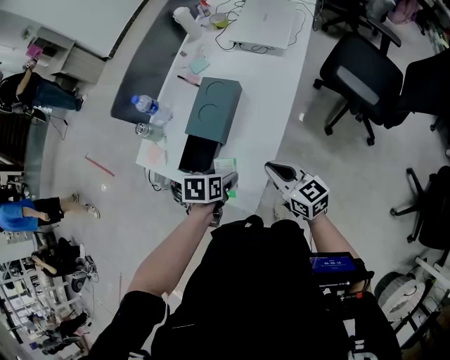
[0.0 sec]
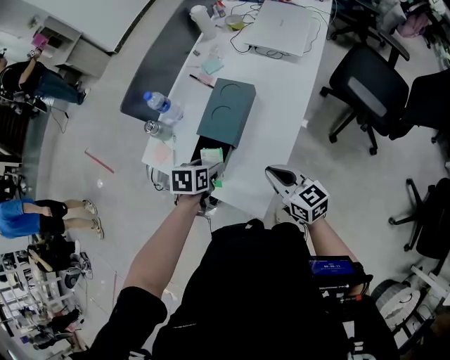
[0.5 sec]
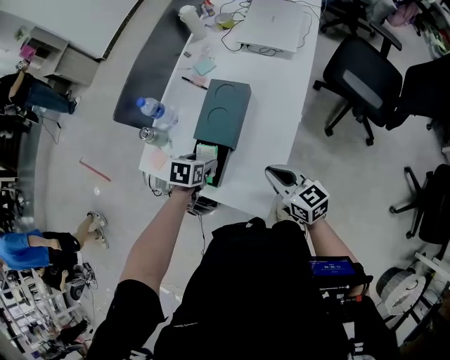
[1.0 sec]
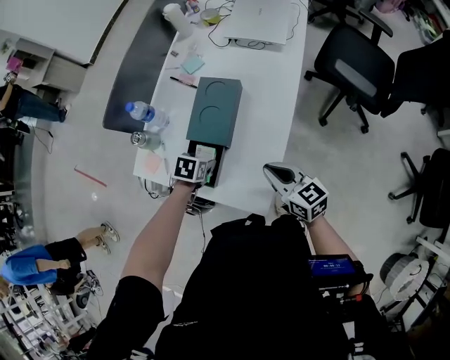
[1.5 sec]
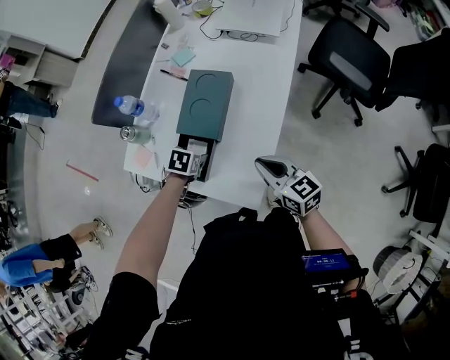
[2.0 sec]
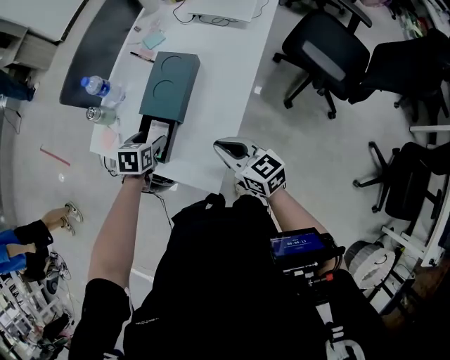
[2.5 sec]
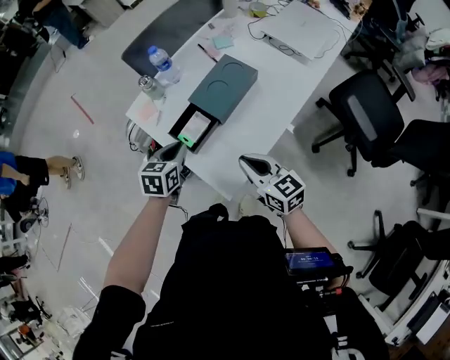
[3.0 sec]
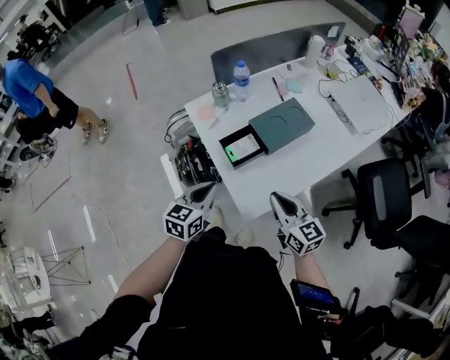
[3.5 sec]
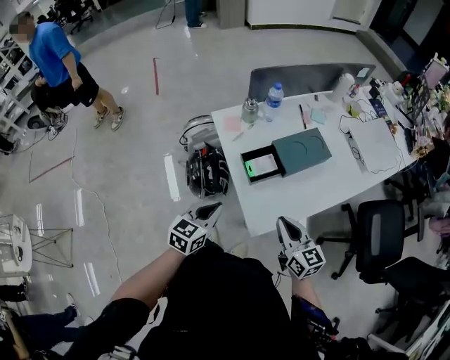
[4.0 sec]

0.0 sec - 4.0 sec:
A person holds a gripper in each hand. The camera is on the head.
0.0 sec - 2.0 sec: The left gripper ends up approximately 15 cm from where it was, and rotates about 20 degrees.
2.0 sec - 4.0 sec: The right gripper shifts by roughly 10 cm, and swivels approximately 30 degrees, while the left gripper shifts by some 30 cm, angles its fingers upward, by about 50 degrees, and closes.

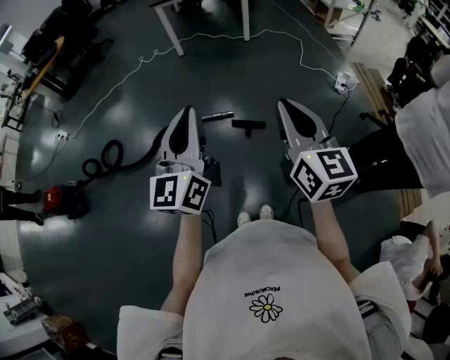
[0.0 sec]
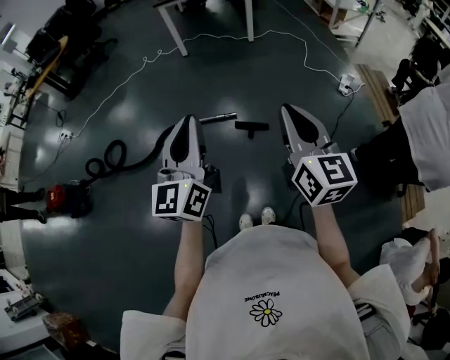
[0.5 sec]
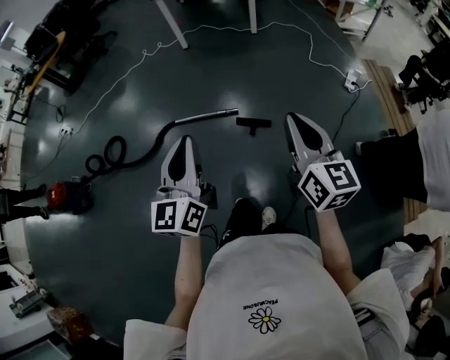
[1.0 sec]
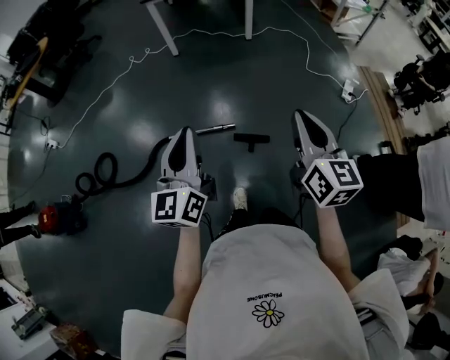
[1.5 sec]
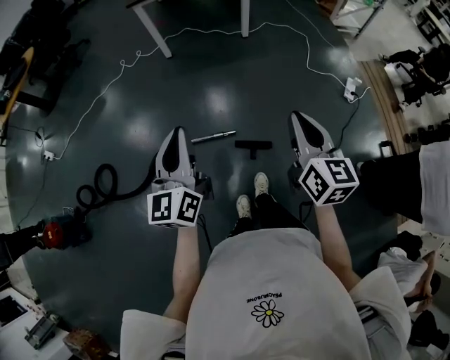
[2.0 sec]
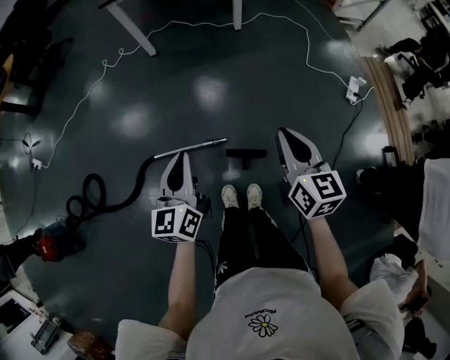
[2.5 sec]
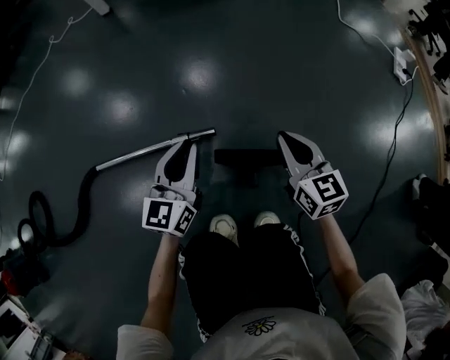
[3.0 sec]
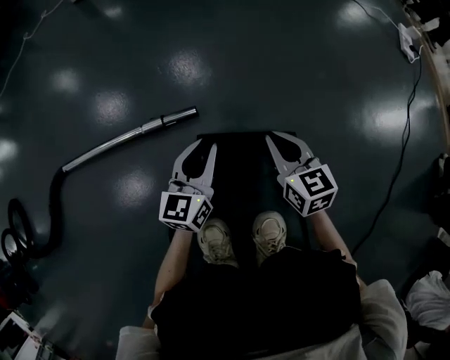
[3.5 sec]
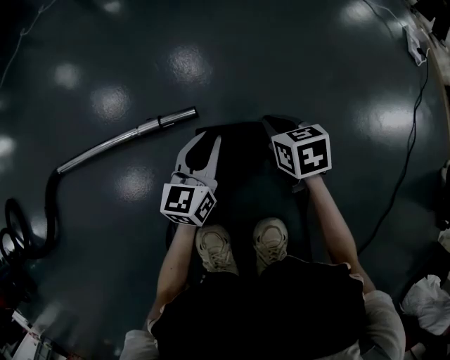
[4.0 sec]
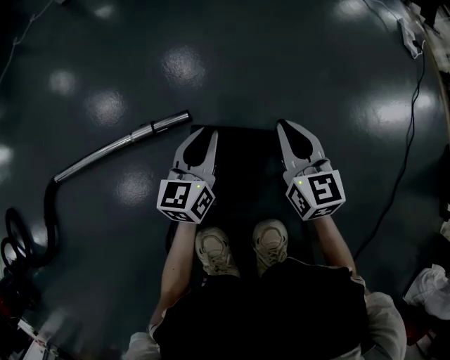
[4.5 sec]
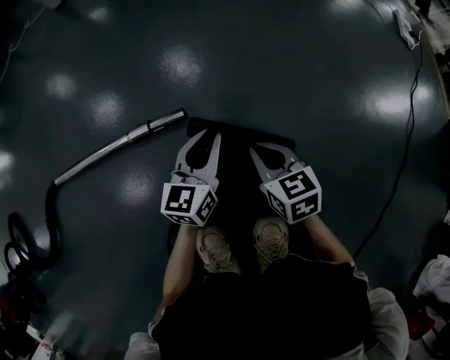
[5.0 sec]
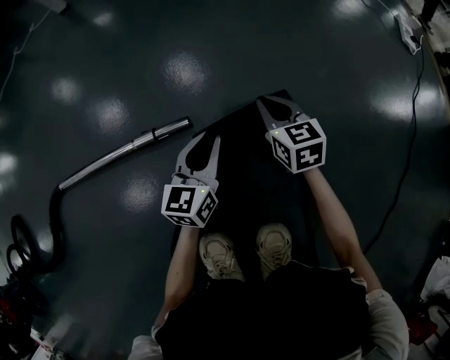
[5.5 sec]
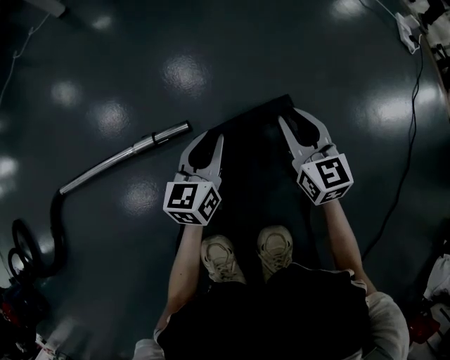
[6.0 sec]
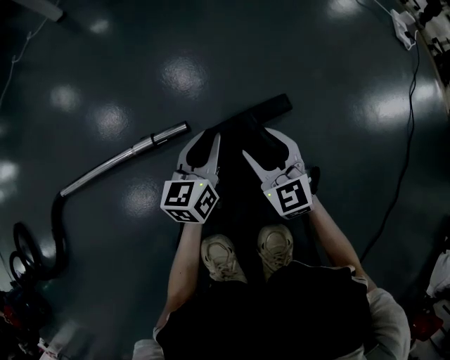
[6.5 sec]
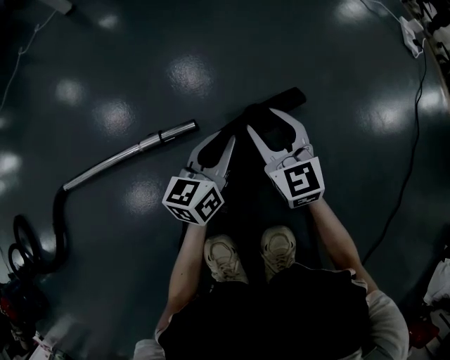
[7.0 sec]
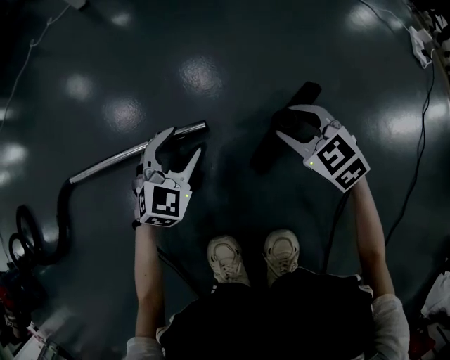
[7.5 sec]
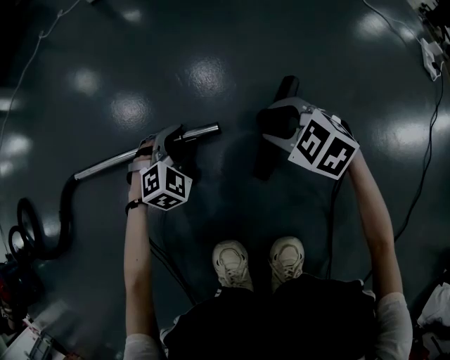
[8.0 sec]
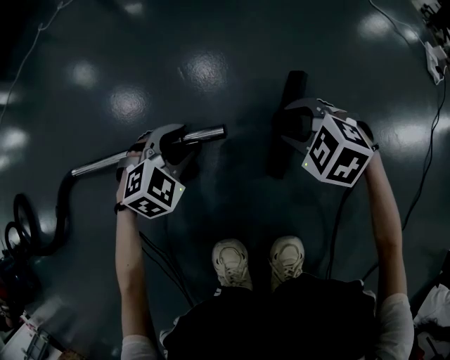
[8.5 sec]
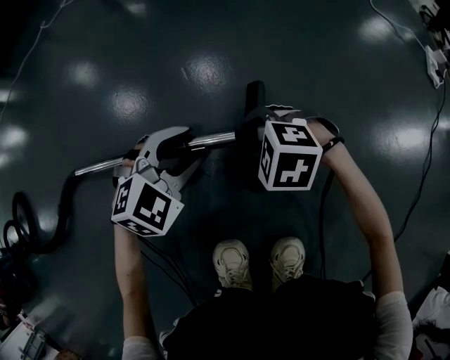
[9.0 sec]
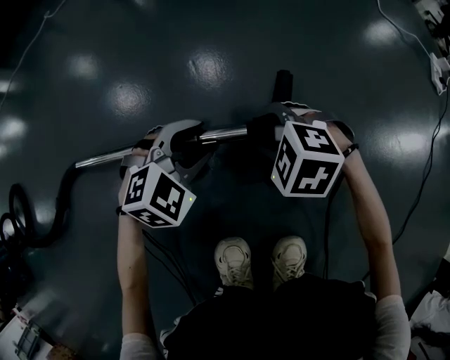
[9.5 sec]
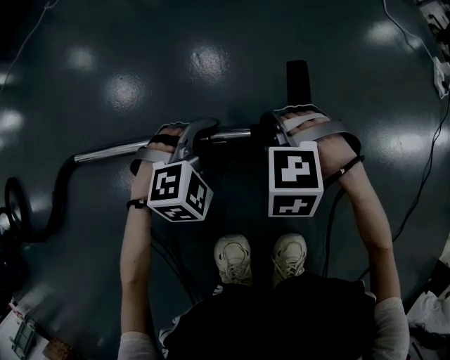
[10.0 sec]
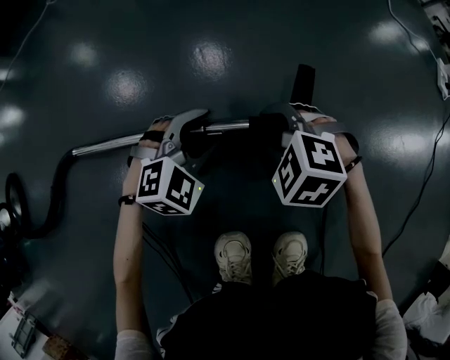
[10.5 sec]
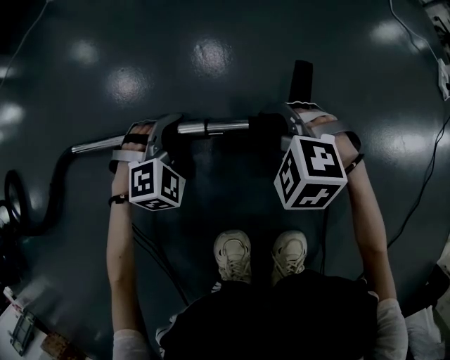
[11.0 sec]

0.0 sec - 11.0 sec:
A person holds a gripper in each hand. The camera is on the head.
0.0 sec - 2.0 sec: Both grippers move forward, approximately 35 cm.
2.0 sec - 3.5 sec: The grippers both shift downward by about 90 cm. The right gripper turns by approximately 20 degrees, while the left gripper turns by some 30 degrees.
3.5 sec - 5.5 sec: The left gripper shifts by roughly 5 cm. The right gripper swings forward and backward, approximately 15 cm each way, with 2 reversals.
5.5 sec - 7.5 sec: The left gripper is displaced to the left by roughly 10 cm, rolls clockwise, seen from behind, by some 50 degrees, and opens, while the right gripper changes place by approximately 5 cm, changes its angle by some 30 degrees, and opens.
7.5 sec - 9.0 sec: The right gripper is displaced to the left by roughly 15 cm, and swivels roughly 40 degrees.
9.0 sec - 11.0 sec: The left gripper travels downward and to the left by roughly 10 cm, and swivels approximately 20 degrees.

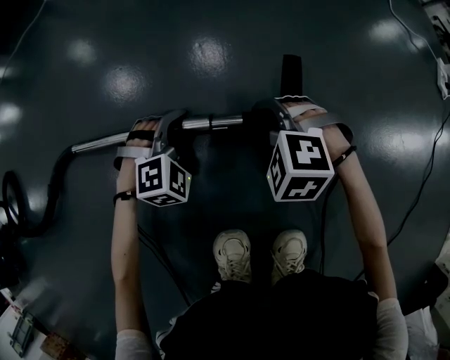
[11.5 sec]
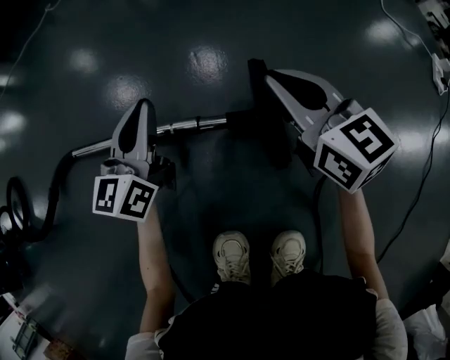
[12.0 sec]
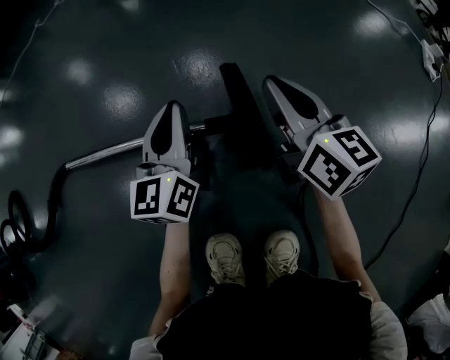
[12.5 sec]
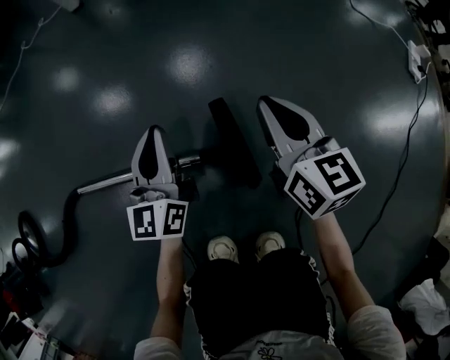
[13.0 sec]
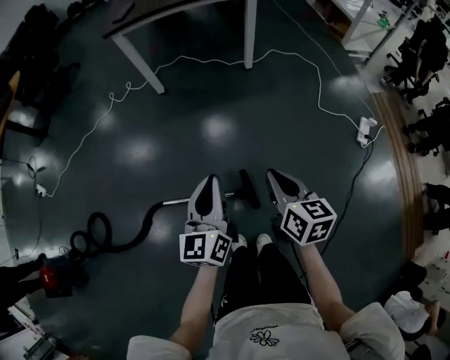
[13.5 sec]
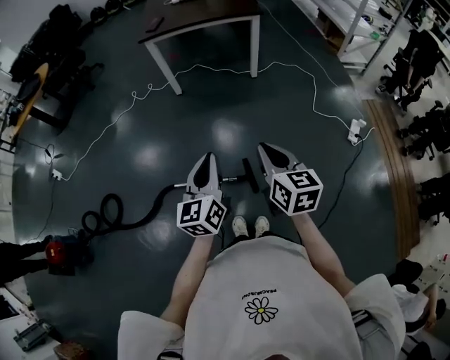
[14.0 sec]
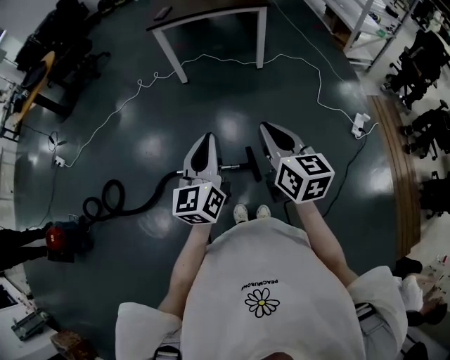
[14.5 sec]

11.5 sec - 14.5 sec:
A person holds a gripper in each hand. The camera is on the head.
11.5 sec - 13.0 sec: The right gripper travels upward, to the right and forward by some 25 cm, rotates around the line of its fingers by approximately 70 degrees, clockwise from behind, and closes, while the left gripper travels upward by about 20 cm, rotates around the line of its fingers by about 80 degrees, counterclockwise from behind, and closes.
13.0 sec - 14.5 sec: Both grippers move upward, some 80 cm.

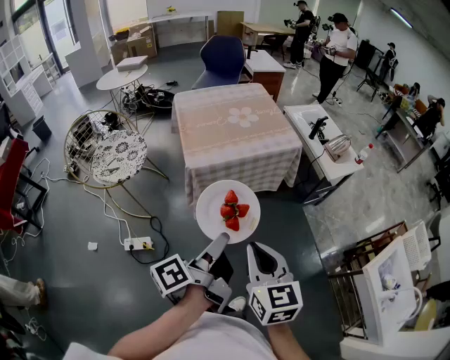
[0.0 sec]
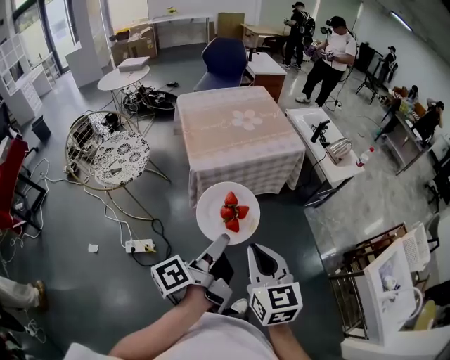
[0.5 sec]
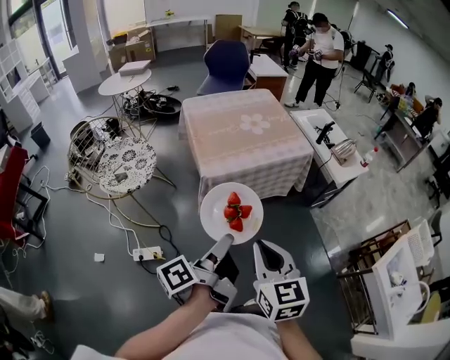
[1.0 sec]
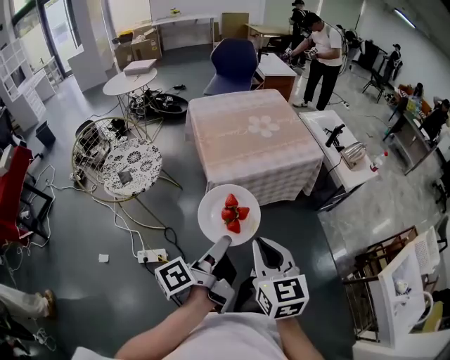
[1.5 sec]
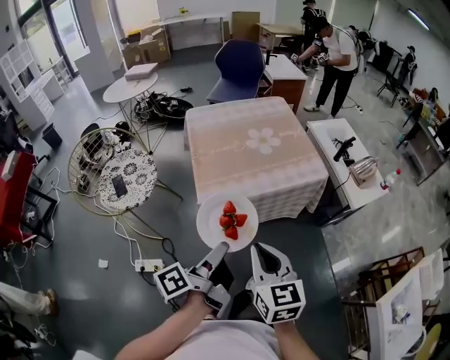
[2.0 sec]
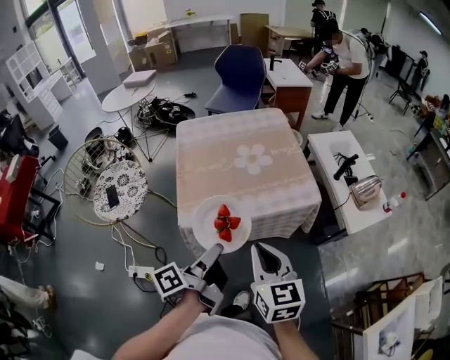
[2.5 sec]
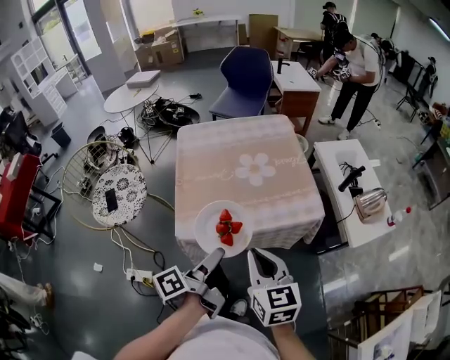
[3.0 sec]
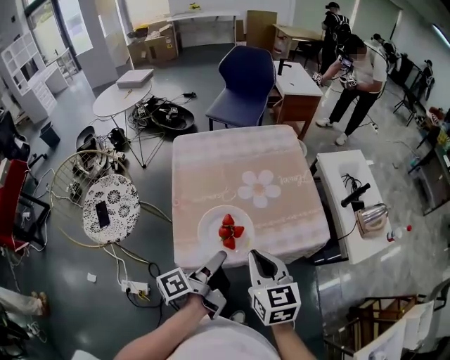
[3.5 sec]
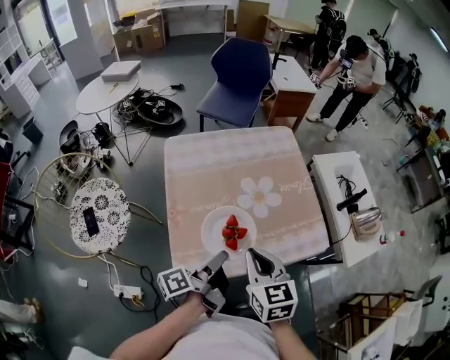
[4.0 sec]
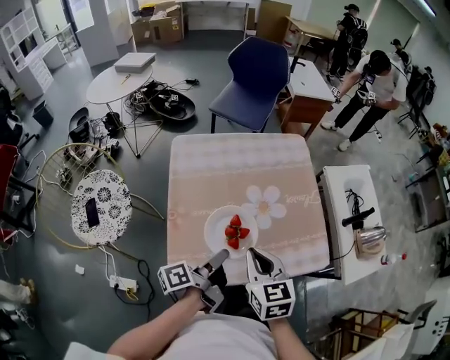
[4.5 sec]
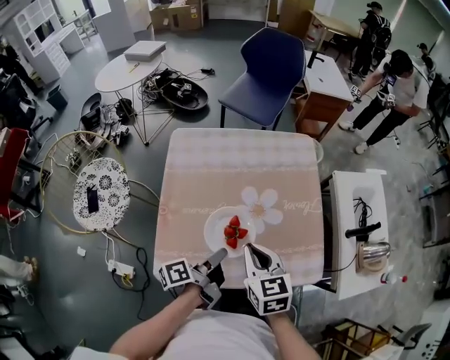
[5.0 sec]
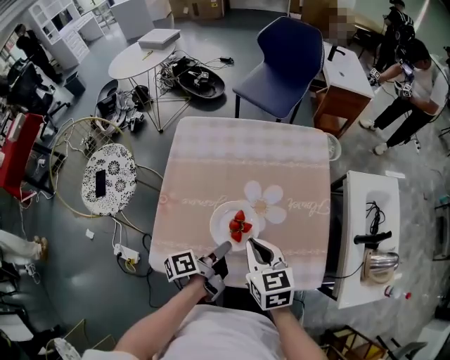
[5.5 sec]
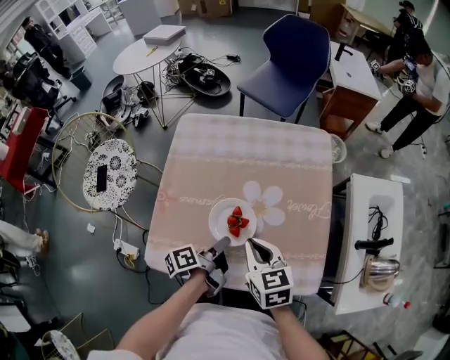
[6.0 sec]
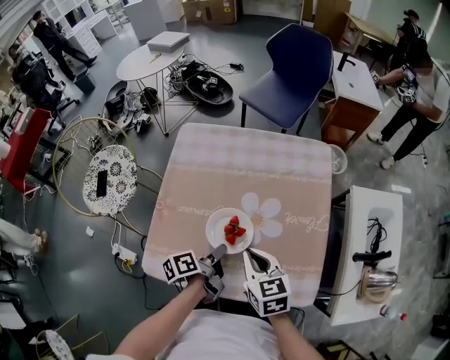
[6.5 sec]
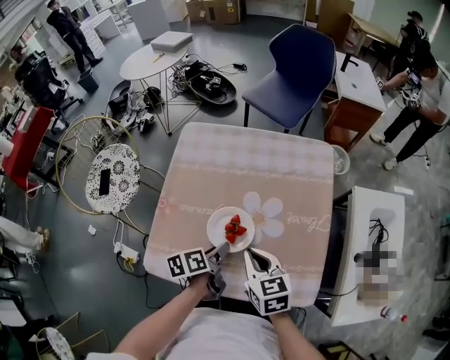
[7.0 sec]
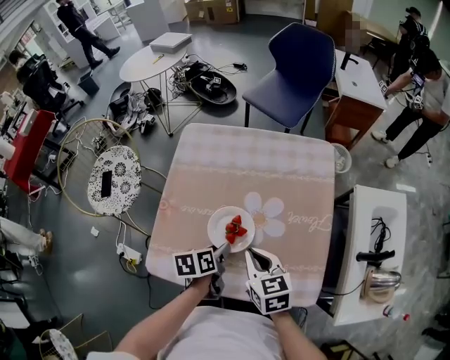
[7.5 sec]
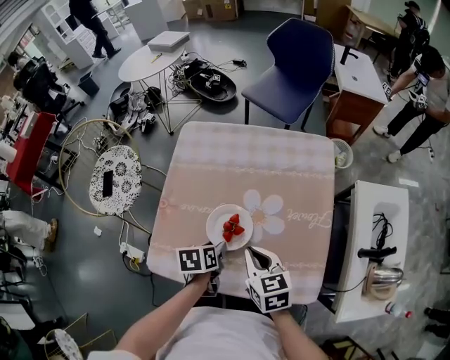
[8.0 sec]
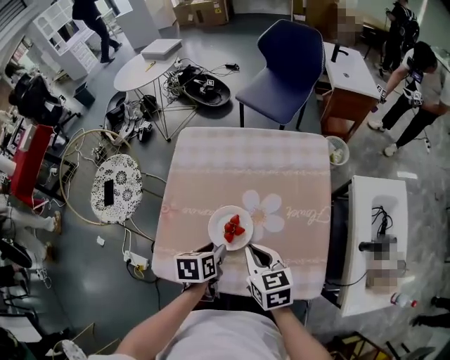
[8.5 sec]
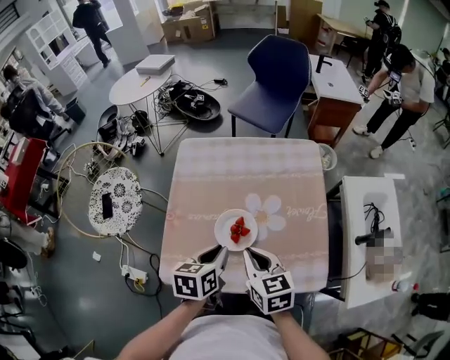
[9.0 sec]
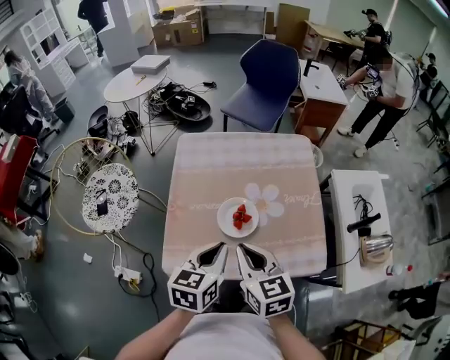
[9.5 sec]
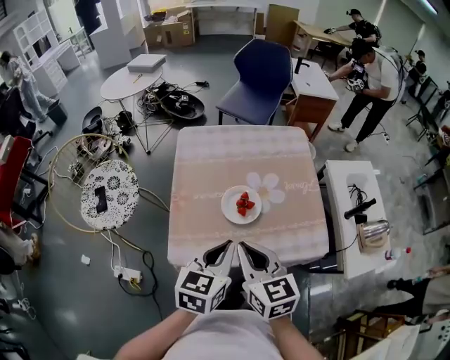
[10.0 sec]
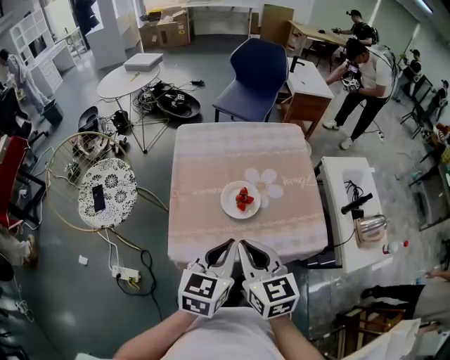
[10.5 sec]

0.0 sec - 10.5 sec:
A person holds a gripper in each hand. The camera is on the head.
0.0 sec - 2.0 sec: The right gripper moves approximately 20 cm.
2.0 sec - 4.0 sec: The right gripper shifts by roughly 35 cm.
4.0 sec - 6.5 sec: The right gripper moves about 20 cm, and swivels some 30 degrees.
8.5 sec - 10.5 sec: The right gripper moves approximately 20 cm.
